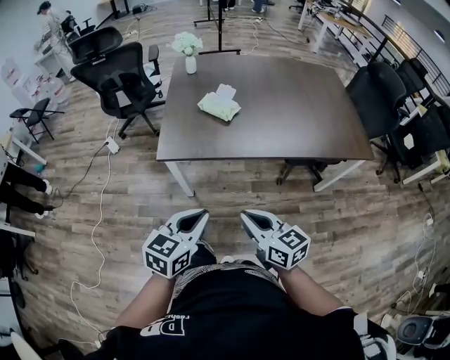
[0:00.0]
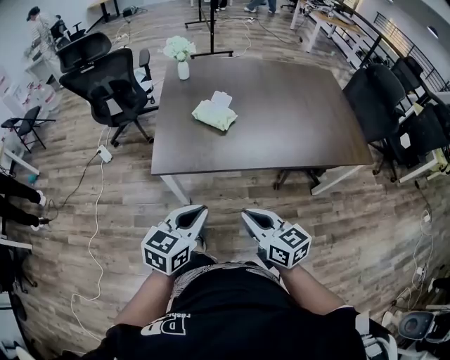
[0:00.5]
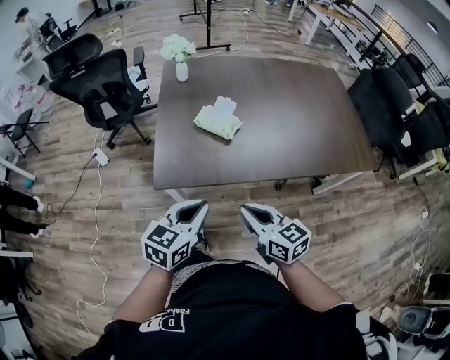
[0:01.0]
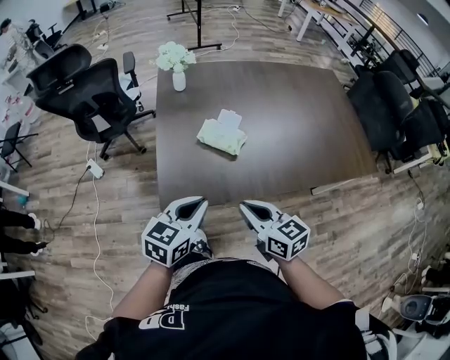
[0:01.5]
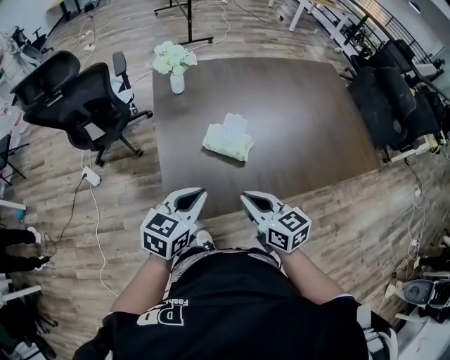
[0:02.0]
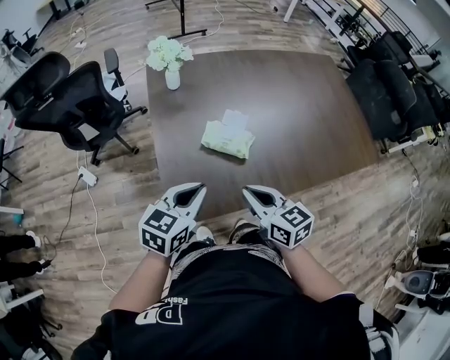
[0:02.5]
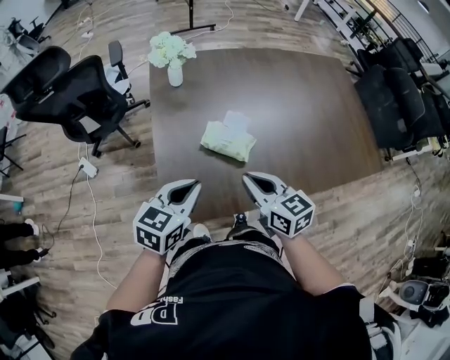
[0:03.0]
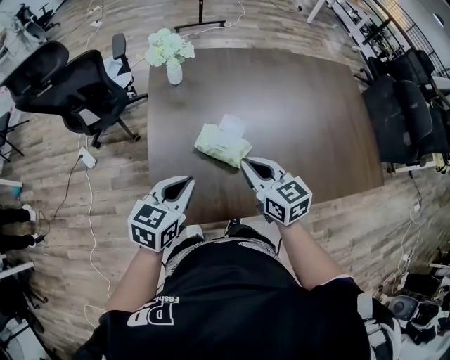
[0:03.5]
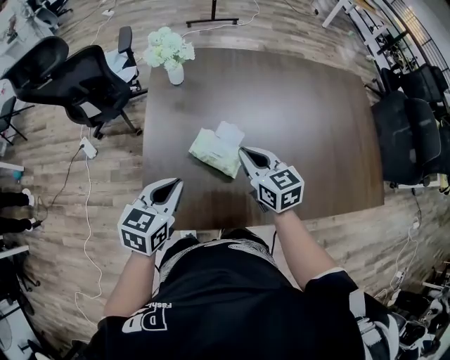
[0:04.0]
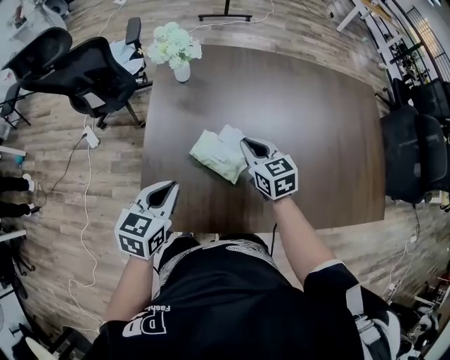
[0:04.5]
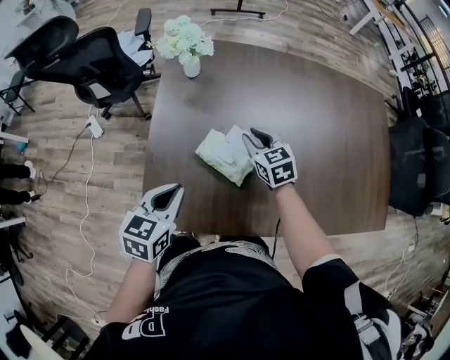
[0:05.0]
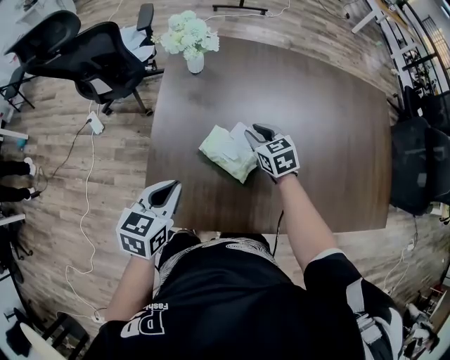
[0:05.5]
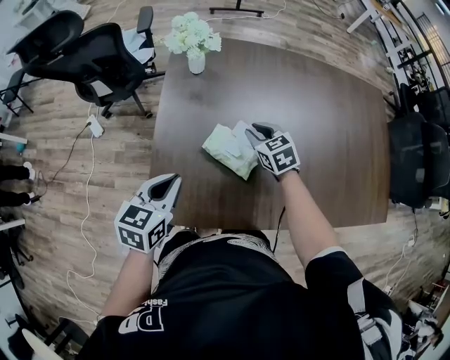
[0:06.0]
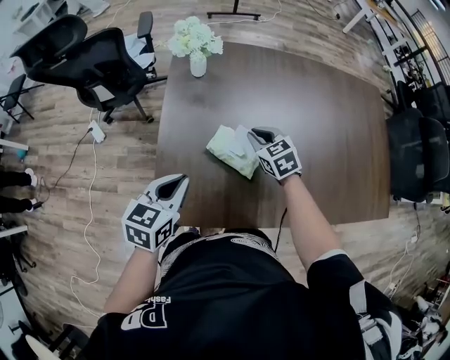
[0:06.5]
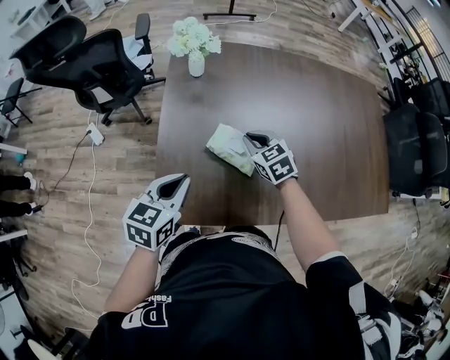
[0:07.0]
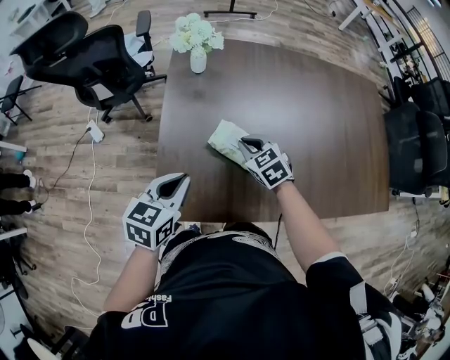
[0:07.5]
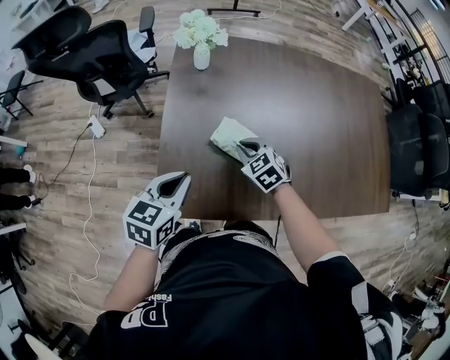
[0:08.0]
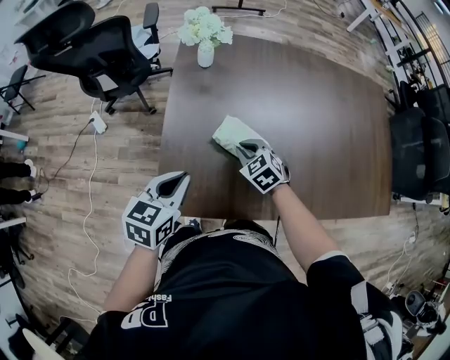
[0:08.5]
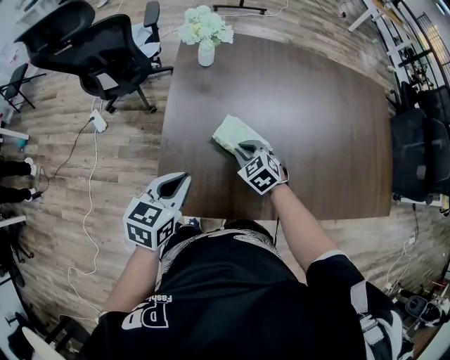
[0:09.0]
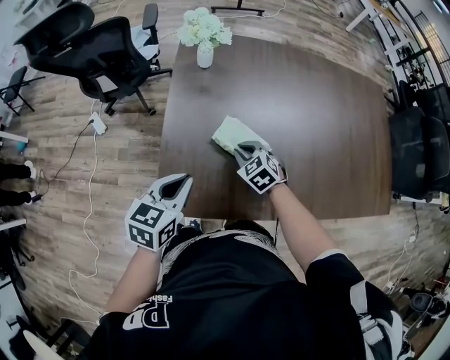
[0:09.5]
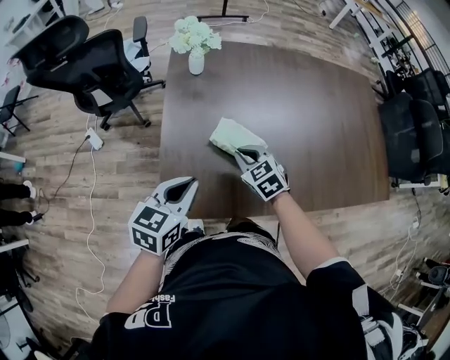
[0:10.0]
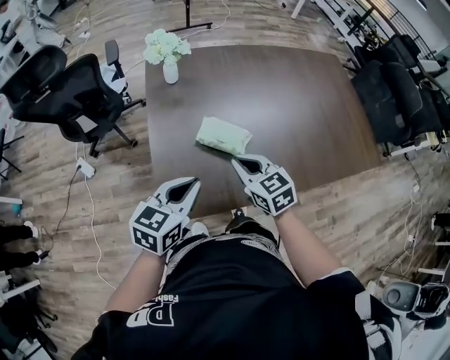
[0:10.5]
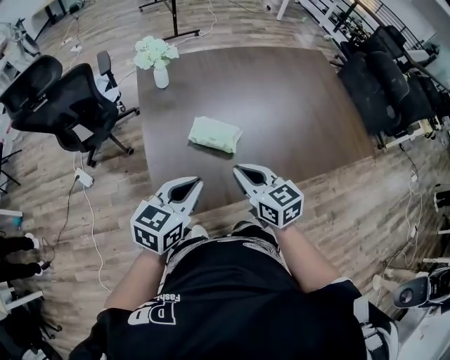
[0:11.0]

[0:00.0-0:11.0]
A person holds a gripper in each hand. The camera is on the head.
0:00.0 to 0:02.0: Both grippers travel together forward, roughly 35 cm.
0:02.0 to 0:03.5: The right gripper moves forward, roughly 15 cm; the left gripper goes about 10 cm forward.
0:03.5 to 0:05.5: The right gripper heads forward and downward, covering some 20 cm, turns by approximately 20 degrees, and opens up. The left gripper shifts by approximately 5 cm.
0:05.5 to 0:07.5: The right gripper goes some 10 cm backward and to the left.
0:07.5 to 0:09.0: The right gripper heads downward, covering approximately 5 cm.
0:09.0 to 0:11.0: The left gripper is displaced backward, upward and to the right by some 10 cm, and swivels roughly 30 degrees, while the right gripper is displaced upward and backward by some 25 cm, and tips its fingers upward by approximately 30 degrees.

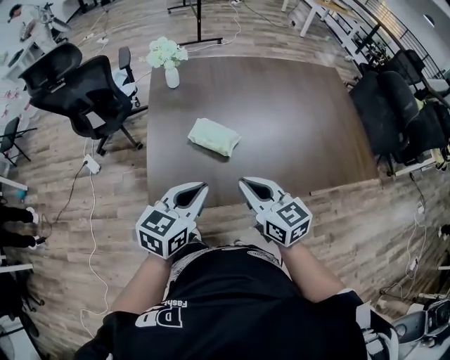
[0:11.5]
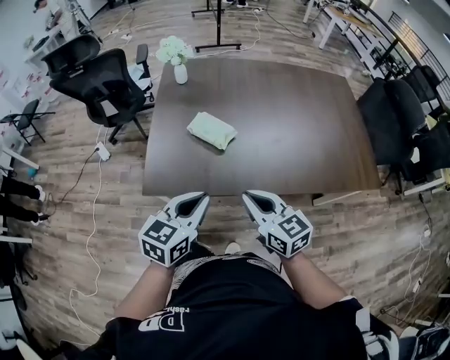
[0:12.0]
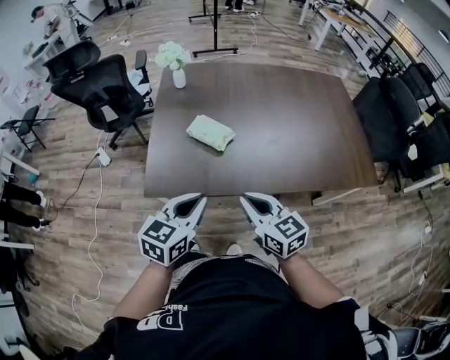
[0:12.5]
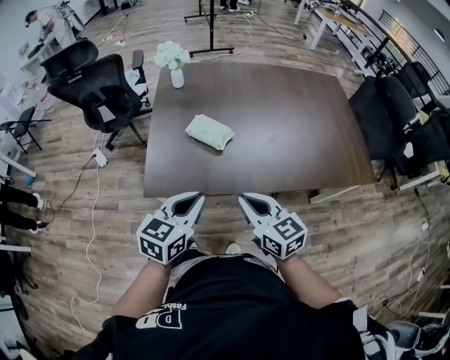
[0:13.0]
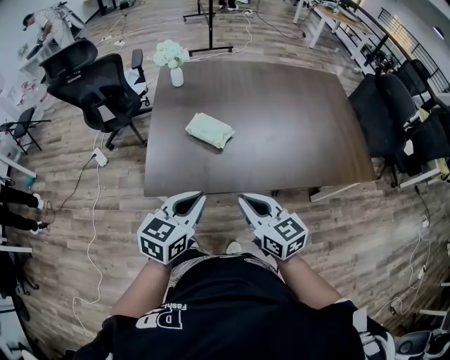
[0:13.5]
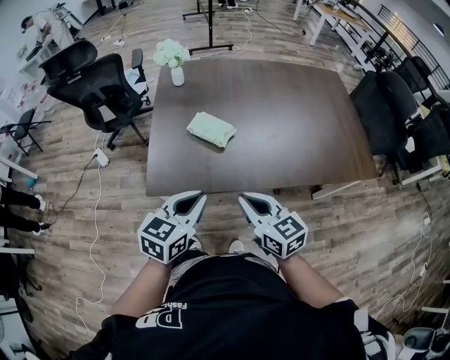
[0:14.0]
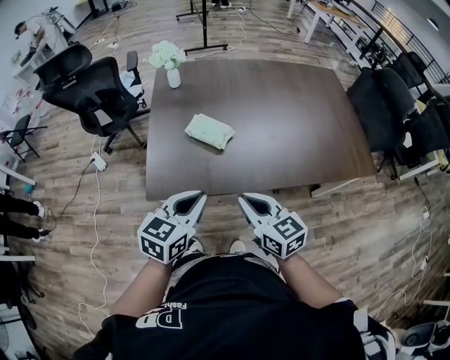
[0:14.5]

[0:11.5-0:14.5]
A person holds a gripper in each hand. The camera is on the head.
0:11.5 to 0:13.0: Both grippers travel together backward, some 10 cm.
0:13.0 to 0:14.5: The grippers make only small movements.

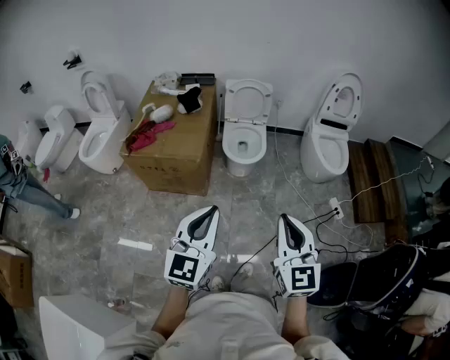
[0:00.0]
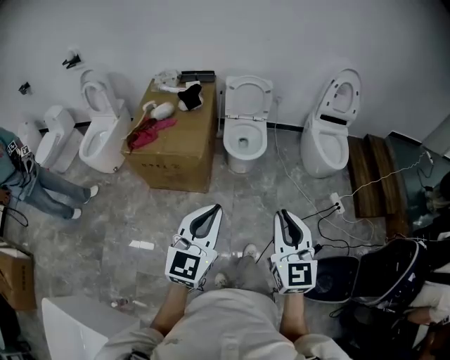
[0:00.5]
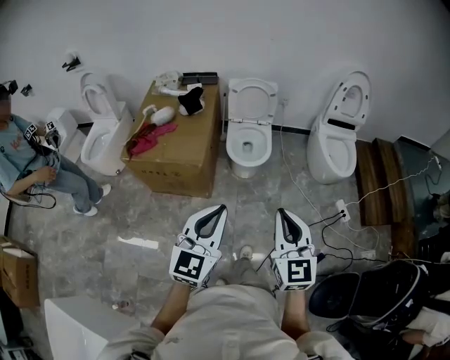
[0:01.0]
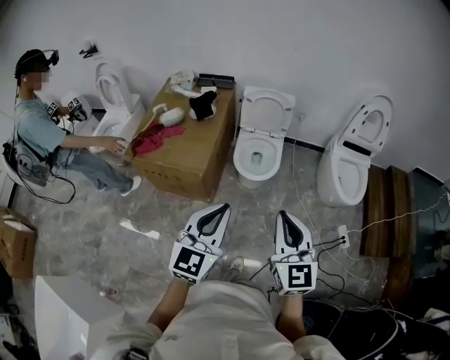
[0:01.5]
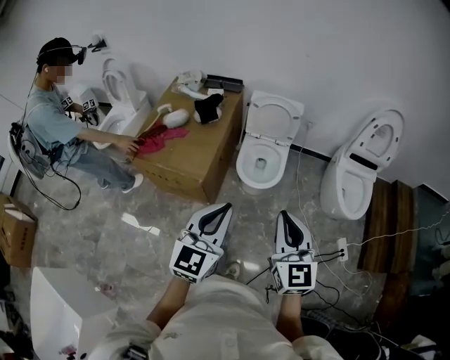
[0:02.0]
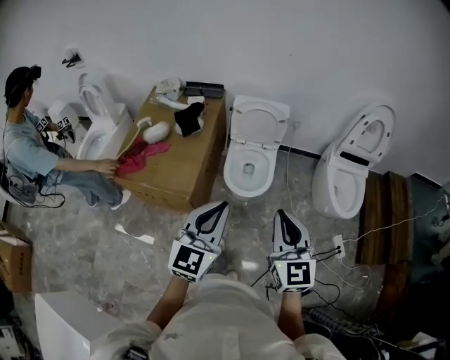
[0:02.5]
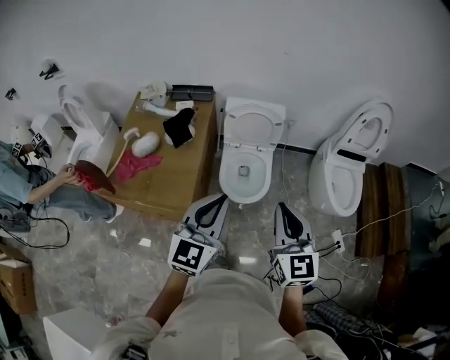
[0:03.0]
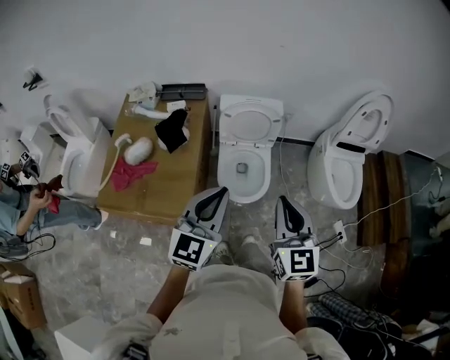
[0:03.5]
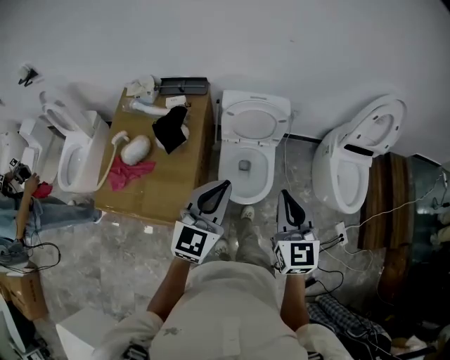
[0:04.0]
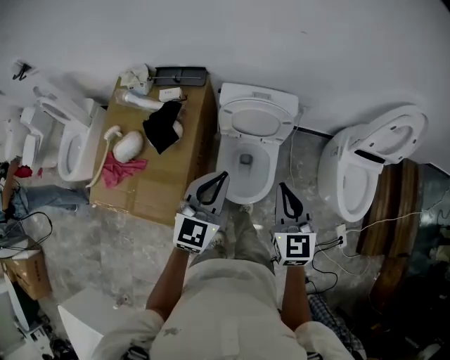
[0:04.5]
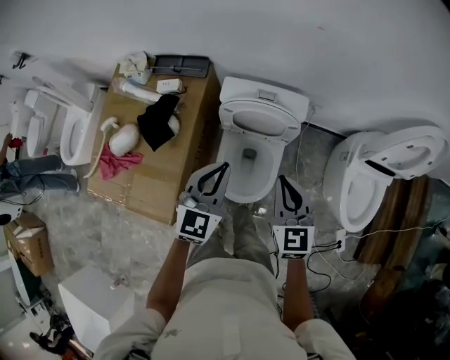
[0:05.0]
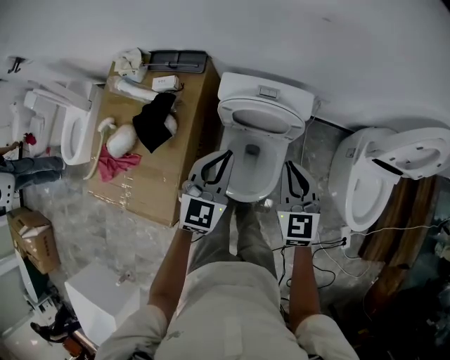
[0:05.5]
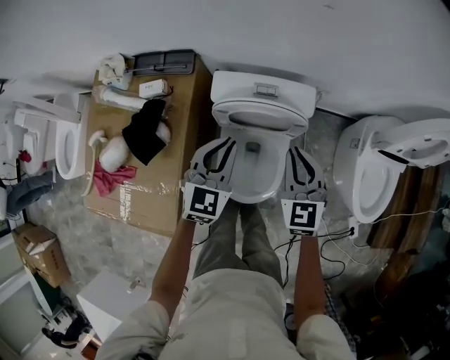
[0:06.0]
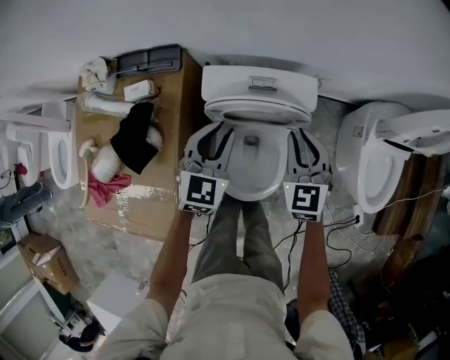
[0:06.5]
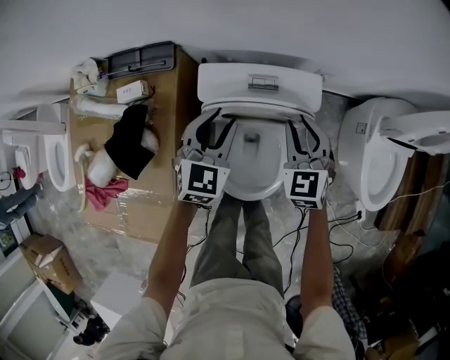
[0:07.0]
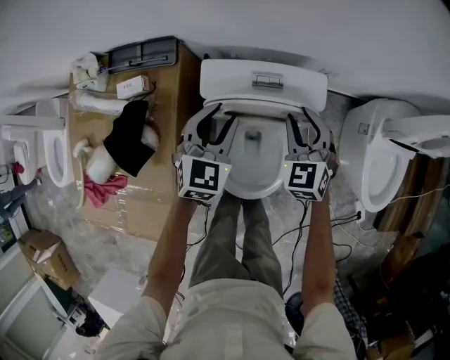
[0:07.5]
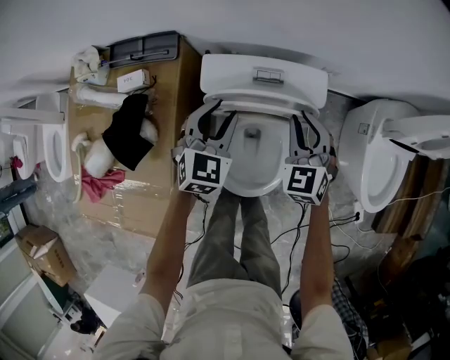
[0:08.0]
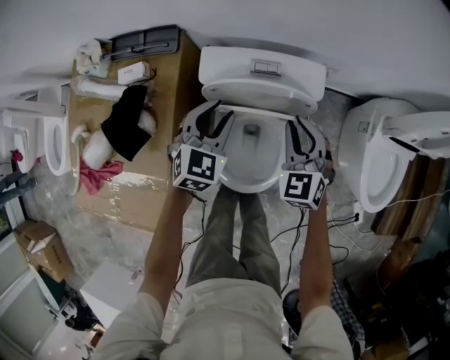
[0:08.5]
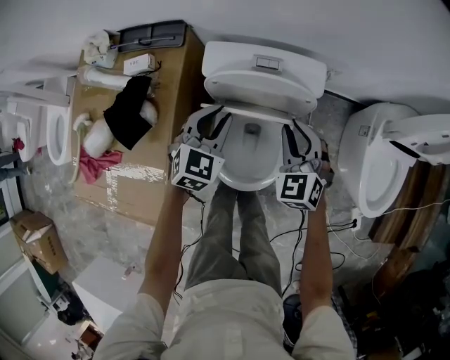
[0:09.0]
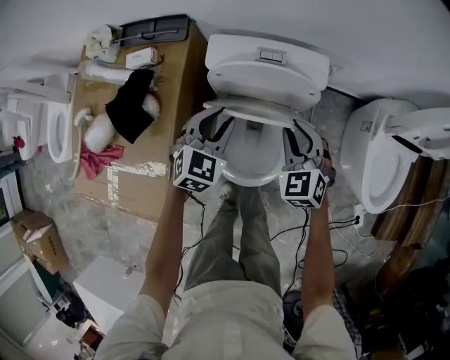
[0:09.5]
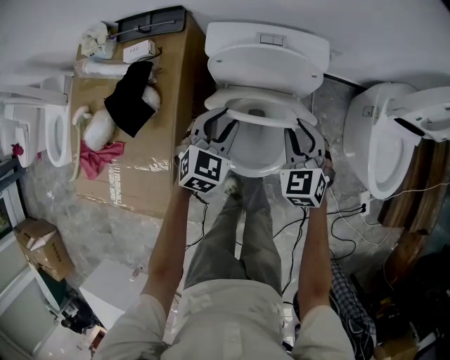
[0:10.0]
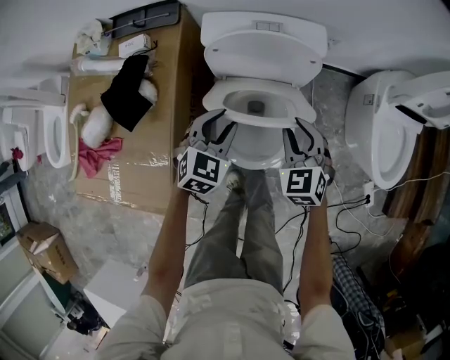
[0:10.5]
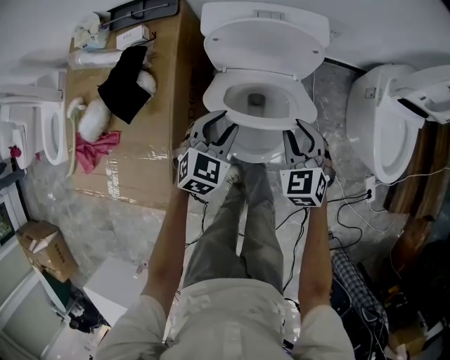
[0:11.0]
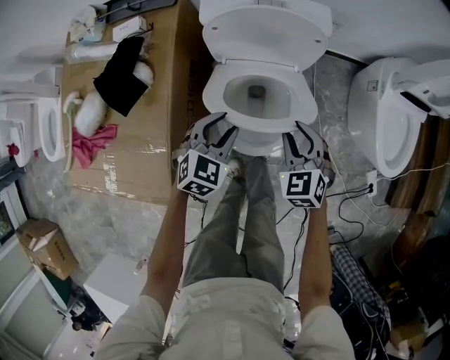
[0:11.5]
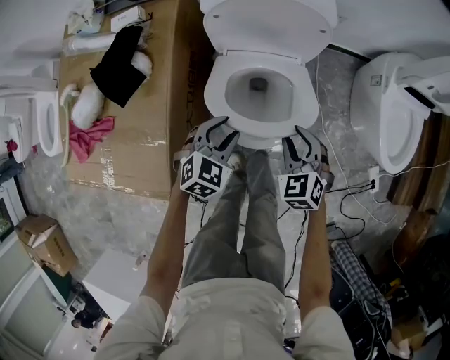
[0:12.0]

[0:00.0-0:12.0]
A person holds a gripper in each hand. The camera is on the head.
0:00.0 to 0:02.0: Both grippers move forward, about 25 cm.
0:02.0 to 0:04.0: Both grippers move forward, some 30 cm.
0:04.0 to 0:06.0: Both grippers move forward and downward, some 35 cm.
0:06.0 to 0:08.0: Both grippers move downward and forward, about 15 cm. The left gripper opens its fingers.
0:08.0 to 0:10.0: The two grippers go approximately 15 cm backward.
0:10.0 to 0:12.0: The two grippers go approximately 15 cm backward and downward.

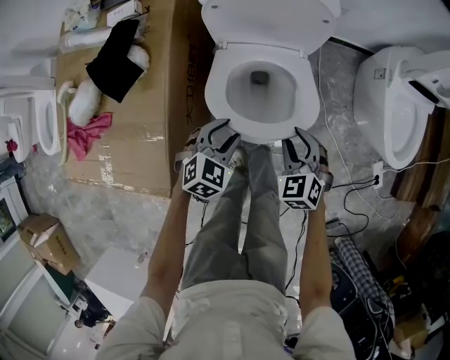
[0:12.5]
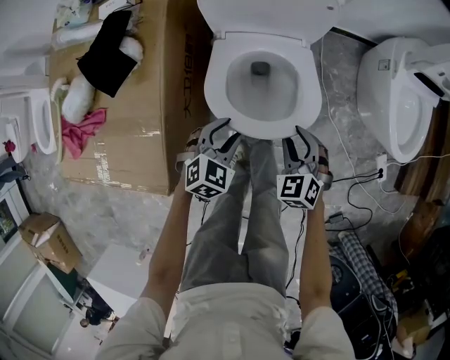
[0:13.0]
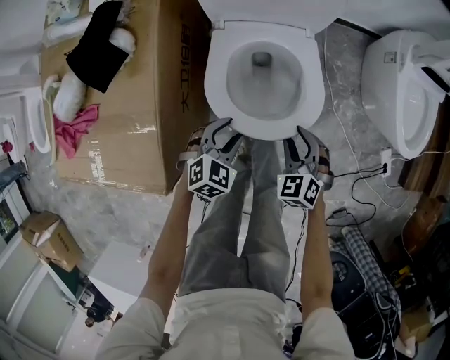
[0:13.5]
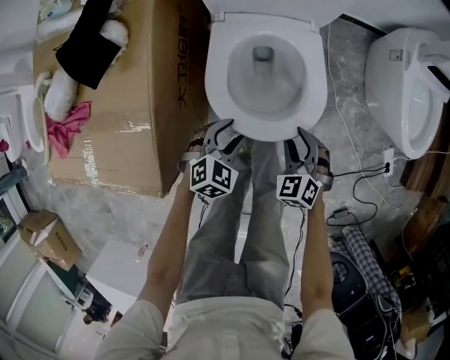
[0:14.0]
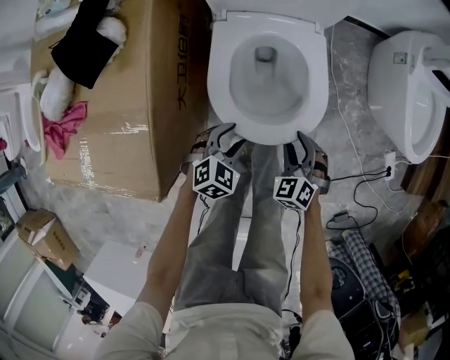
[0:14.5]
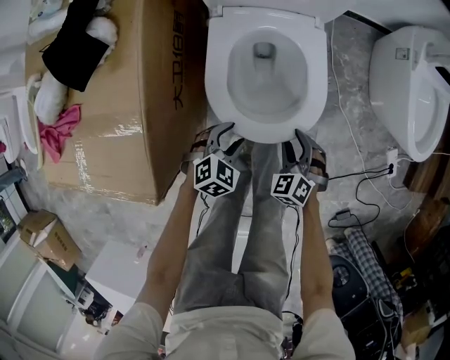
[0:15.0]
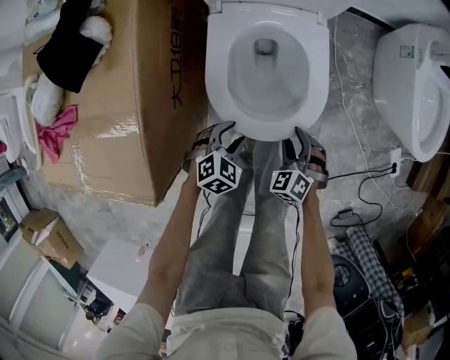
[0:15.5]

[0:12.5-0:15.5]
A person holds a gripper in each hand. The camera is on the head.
0:12.5 to 0:14.0: The two grippers go roughly 15 cm downward and backward.
0:14.0 to 0:15.5: Both grippers move downward, some 10 cm.
